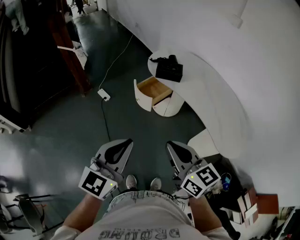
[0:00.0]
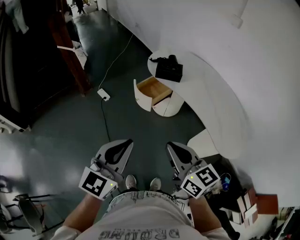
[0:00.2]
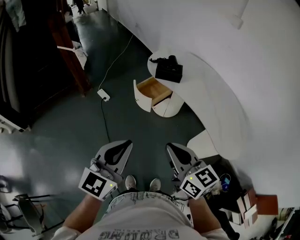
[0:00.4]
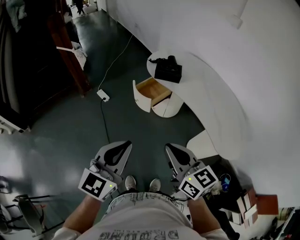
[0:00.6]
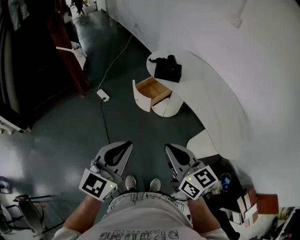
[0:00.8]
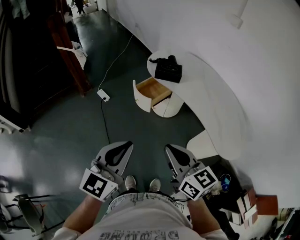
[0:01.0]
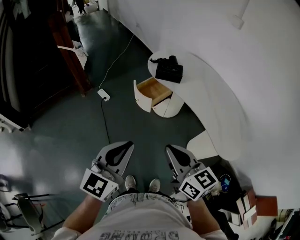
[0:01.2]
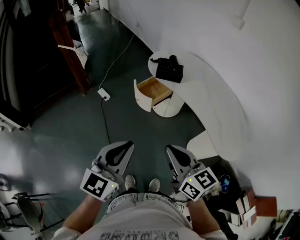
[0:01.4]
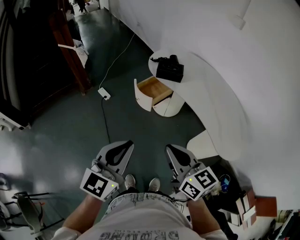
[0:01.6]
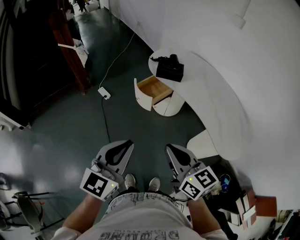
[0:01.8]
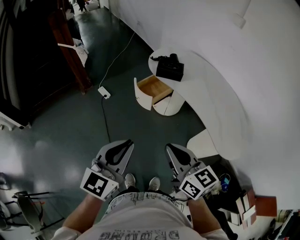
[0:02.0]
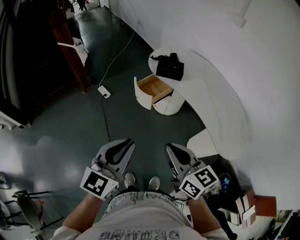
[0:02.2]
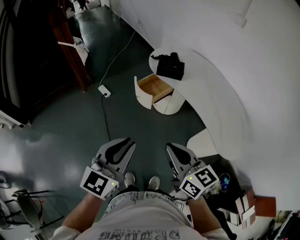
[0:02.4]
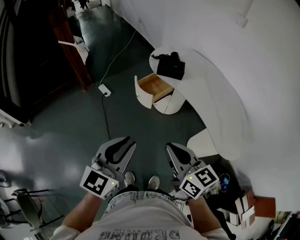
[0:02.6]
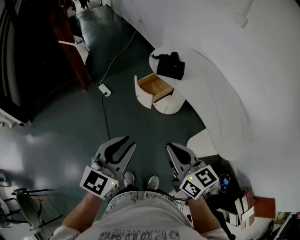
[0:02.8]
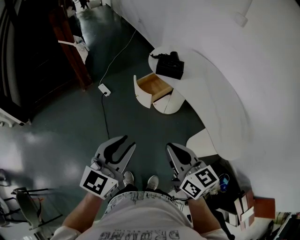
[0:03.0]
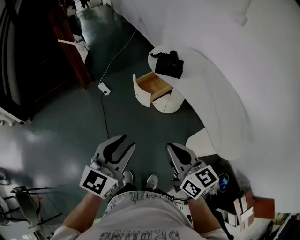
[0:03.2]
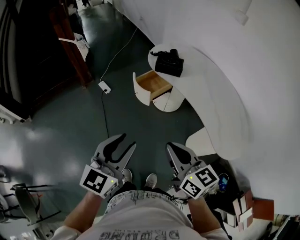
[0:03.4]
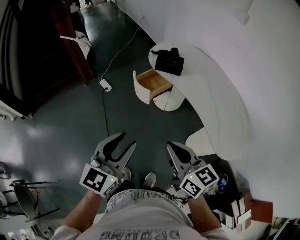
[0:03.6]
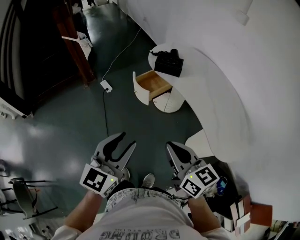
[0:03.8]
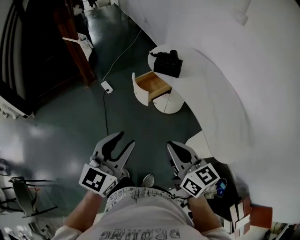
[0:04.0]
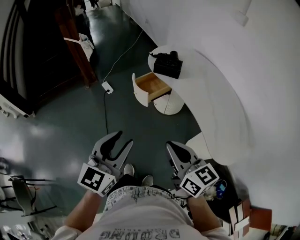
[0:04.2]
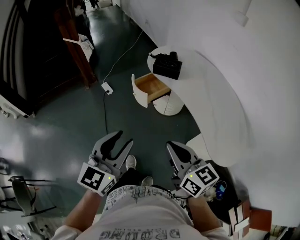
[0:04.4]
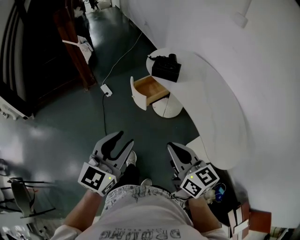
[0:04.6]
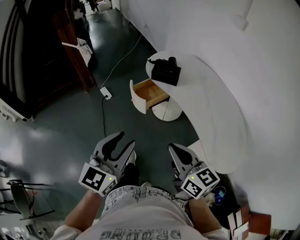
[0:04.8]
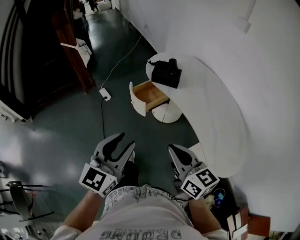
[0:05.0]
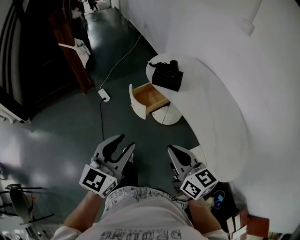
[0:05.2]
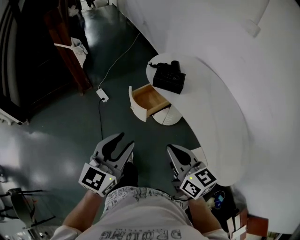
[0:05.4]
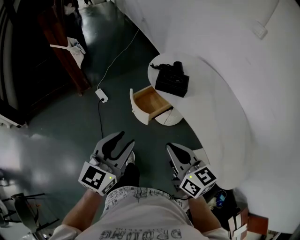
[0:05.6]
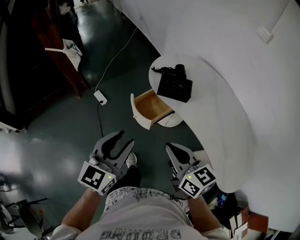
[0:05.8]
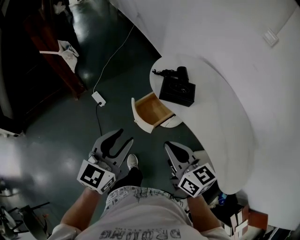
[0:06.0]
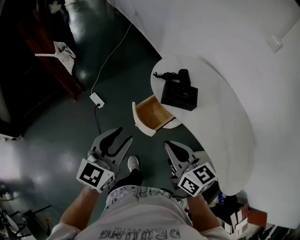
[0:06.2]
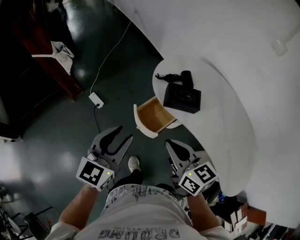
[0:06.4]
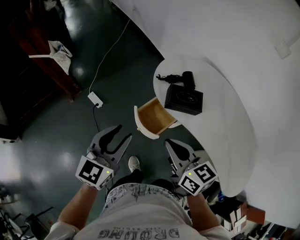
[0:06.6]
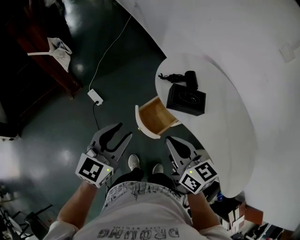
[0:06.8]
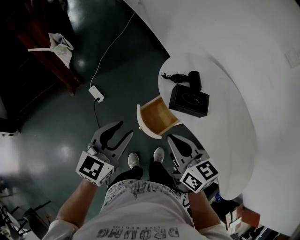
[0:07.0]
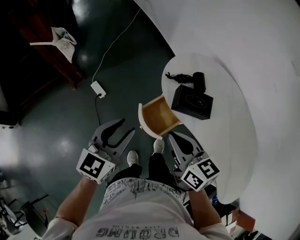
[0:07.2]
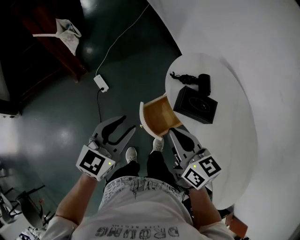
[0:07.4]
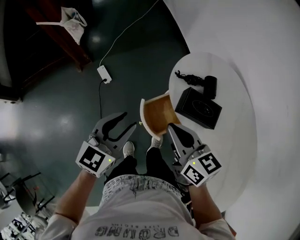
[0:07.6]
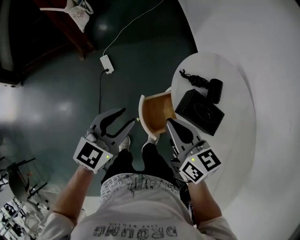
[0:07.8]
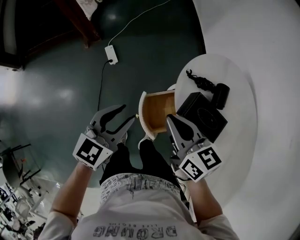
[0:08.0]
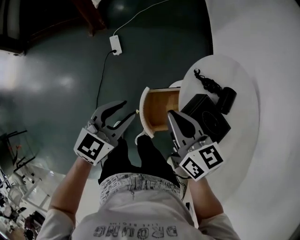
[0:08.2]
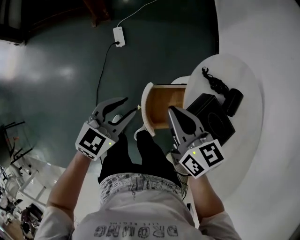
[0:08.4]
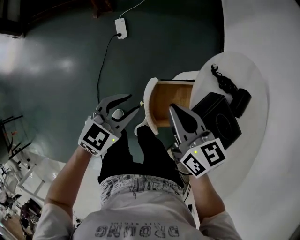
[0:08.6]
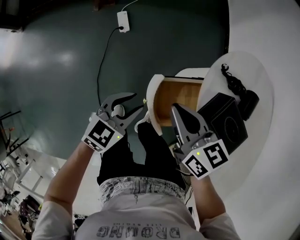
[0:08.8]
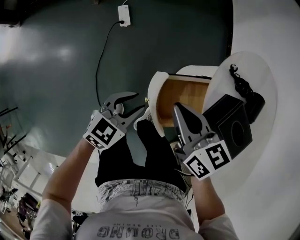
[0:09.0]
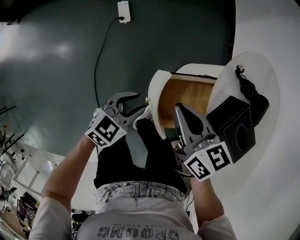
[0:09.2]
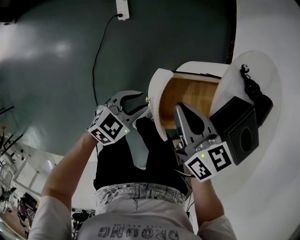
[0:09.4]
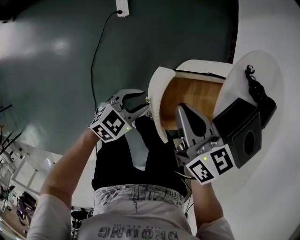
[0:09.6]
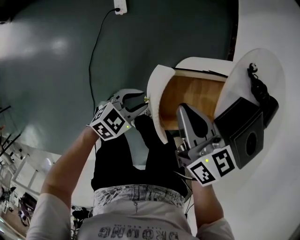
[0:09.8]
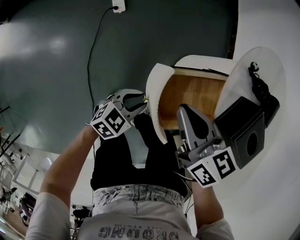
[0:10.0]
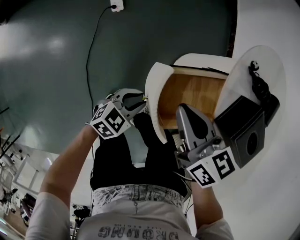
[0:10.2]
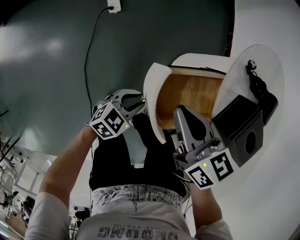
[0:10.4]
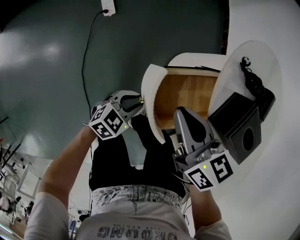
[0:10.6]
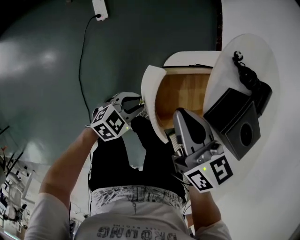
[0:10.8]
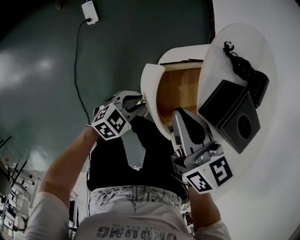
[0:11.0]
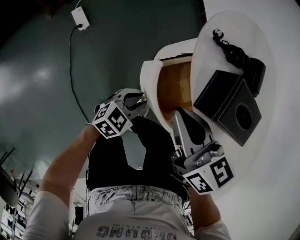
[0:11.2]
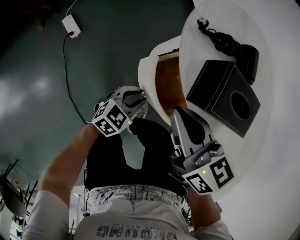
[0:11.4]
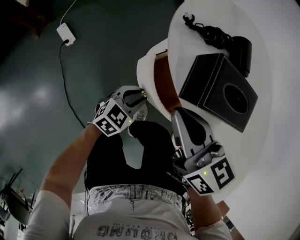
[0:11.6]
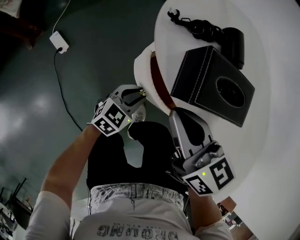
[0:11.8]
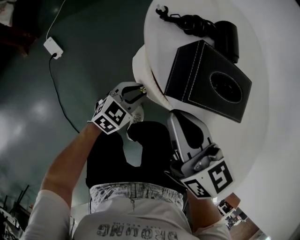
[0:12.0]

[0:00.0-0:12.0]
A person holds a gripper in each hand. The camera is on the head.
0:00.0 to 0:01.6: There are only small adjustments of the grippers.
0:01.6 to 0:03.0: The left gripper opens its fingers.
0:03.0 to 0:04.4: Both grippers move to the right, some 5 cm.
0:04.4 to 0:06.0: The grippers both shift forward by roughly 30 cm.
0:06.0 to 0:07.6: The left gripper shifts some 20 cm forward and downward; the right gripper heads forward, covering approximately 20 cm.
0:07.6 to 0:09.0: The right gripper heads downward, covering about 15 cm, and swivels approximately 20 degrees. Meanwhile the left gripper is displaced downward by approximately 25 cm.
0:09.0 to 0:10.4: The left gripper goes about 15 cm downward, while the right gripper moves downward, about 5 cm.
0:10.4 to 0:12.0: The right gripper ends up about 10 cm from where it was, and rotates roughly 30 degrees. Meanwhile the left gripper changes place by about 15 cm, and rotates approximately 30 degrees.

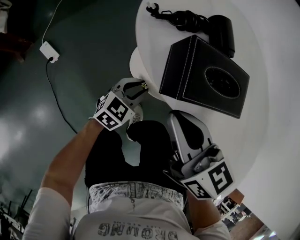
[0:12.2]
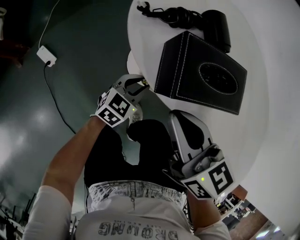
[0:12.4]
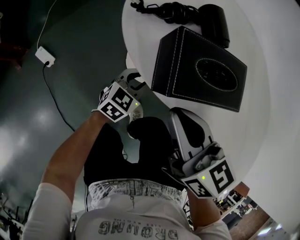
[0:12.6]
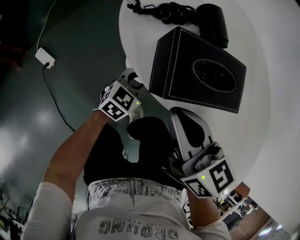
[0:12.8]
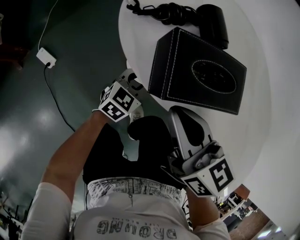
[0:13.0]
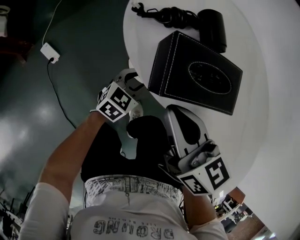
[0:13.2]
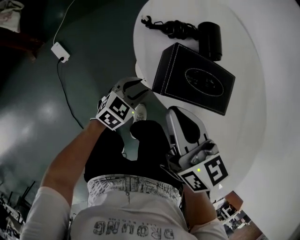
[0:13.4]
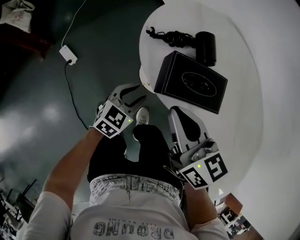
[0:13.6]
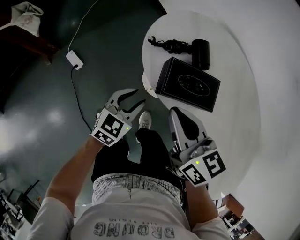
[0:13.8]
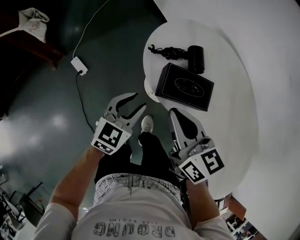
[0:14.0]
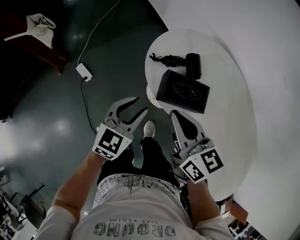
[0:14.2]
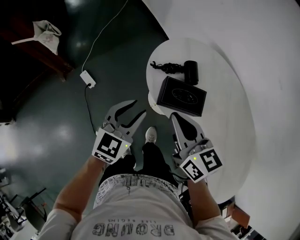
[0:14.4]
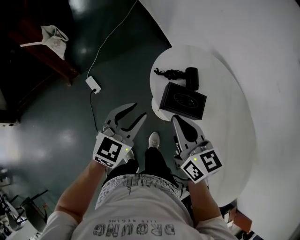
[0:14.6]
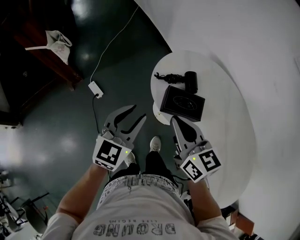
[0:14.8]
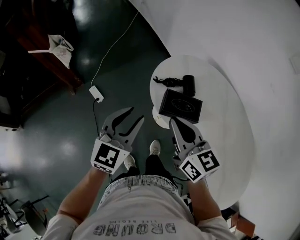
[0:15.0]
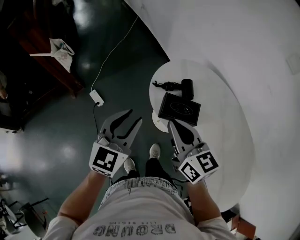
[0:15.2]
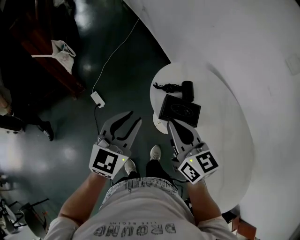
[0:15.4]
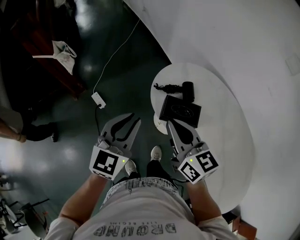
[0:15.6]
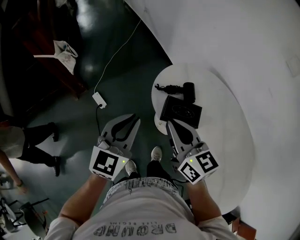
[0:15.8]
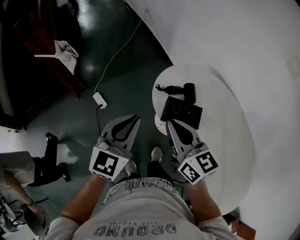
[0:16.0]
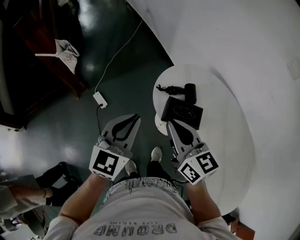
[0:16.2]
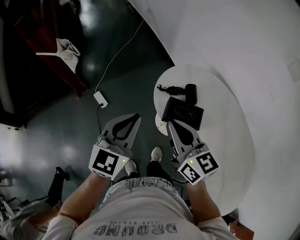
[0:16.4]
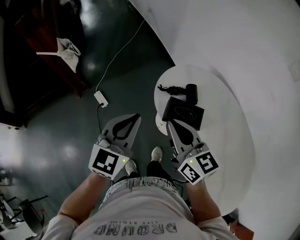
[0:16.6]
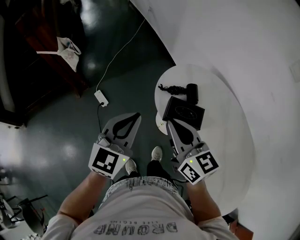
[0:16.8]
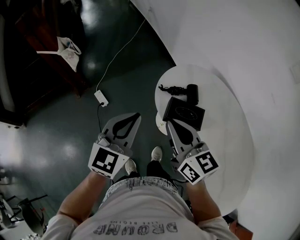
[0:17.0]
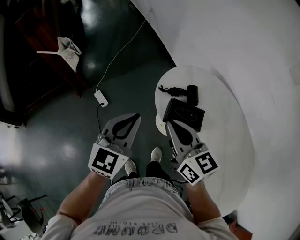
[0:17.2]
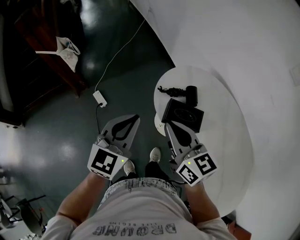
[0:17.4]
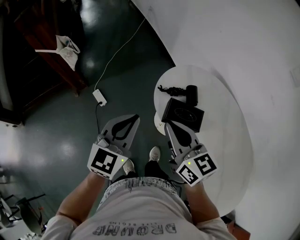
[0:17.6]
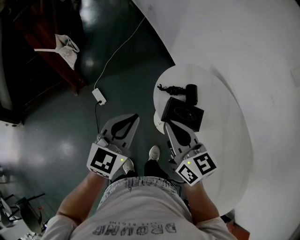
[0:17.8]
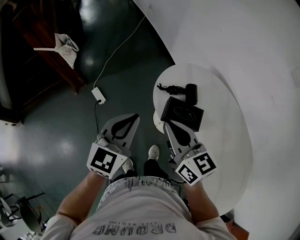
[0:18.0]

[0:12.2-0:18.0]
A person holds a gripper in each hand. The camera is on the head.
0:12.2 to 0:13.6: Both grippers travel together upward, roughly 10 cm.
0:13.6 to 0:15.0: The left gripper shifts about 35 cm upward, and changes its angle by roughly 30 degrees. Meanwhile the right gripper heads upward, covering roughly 15 cm.
0:15.0 to 0:16.6: The left gripper closes.
0:16.6 to 0:18.0: The grippers make only small movements.

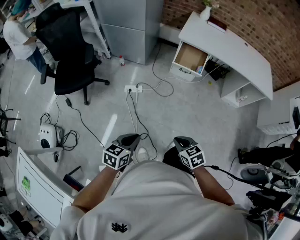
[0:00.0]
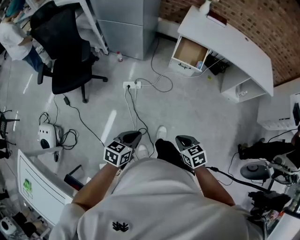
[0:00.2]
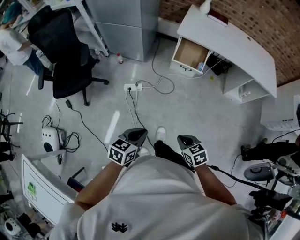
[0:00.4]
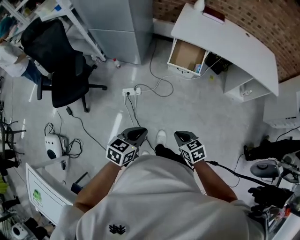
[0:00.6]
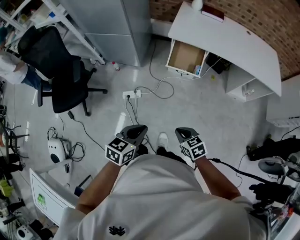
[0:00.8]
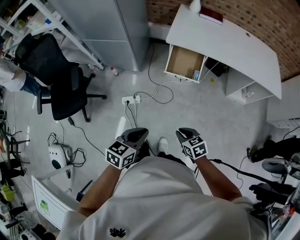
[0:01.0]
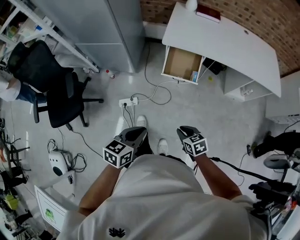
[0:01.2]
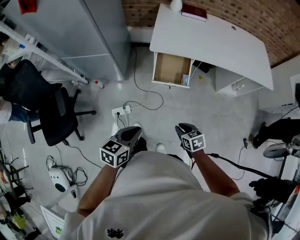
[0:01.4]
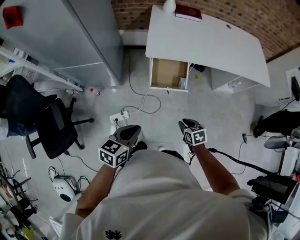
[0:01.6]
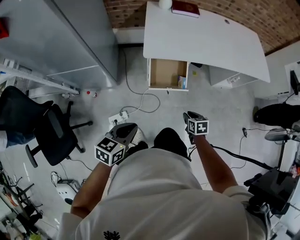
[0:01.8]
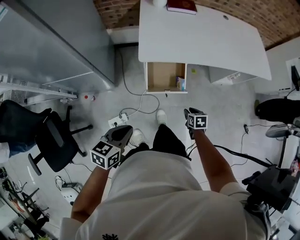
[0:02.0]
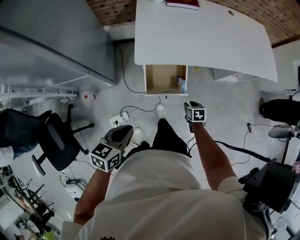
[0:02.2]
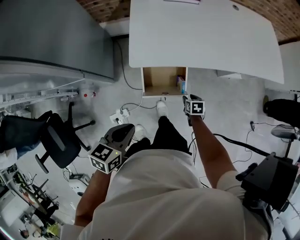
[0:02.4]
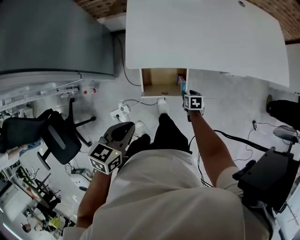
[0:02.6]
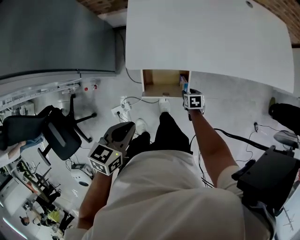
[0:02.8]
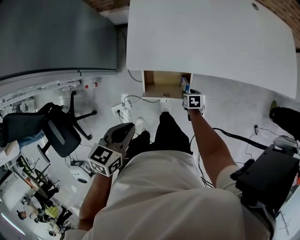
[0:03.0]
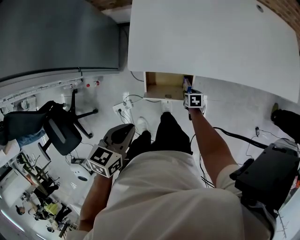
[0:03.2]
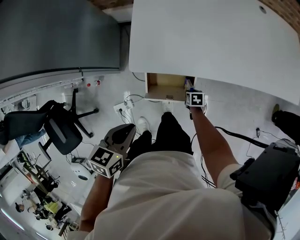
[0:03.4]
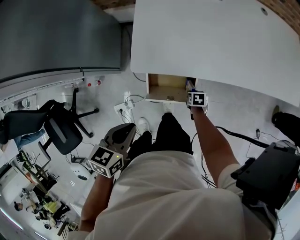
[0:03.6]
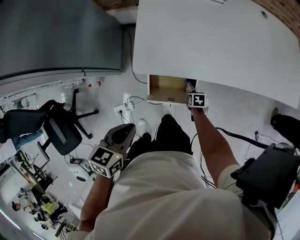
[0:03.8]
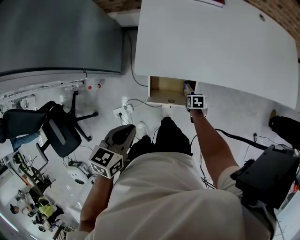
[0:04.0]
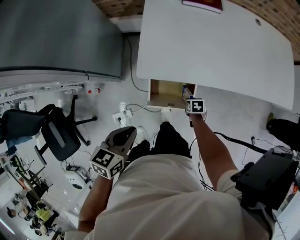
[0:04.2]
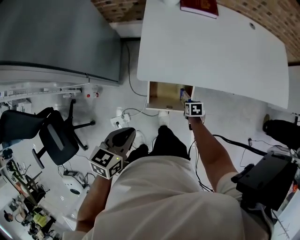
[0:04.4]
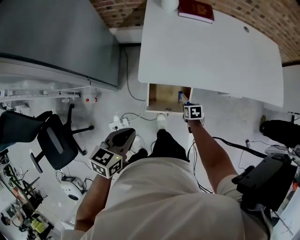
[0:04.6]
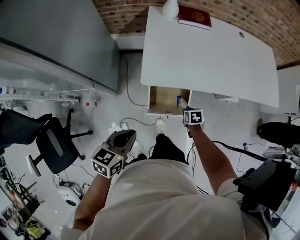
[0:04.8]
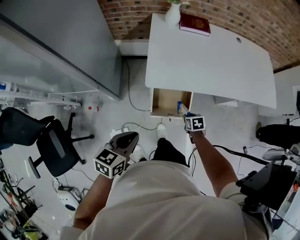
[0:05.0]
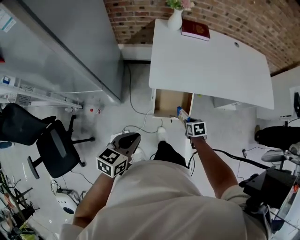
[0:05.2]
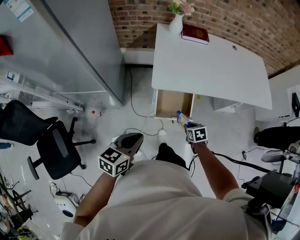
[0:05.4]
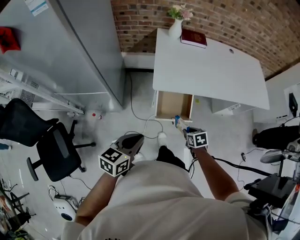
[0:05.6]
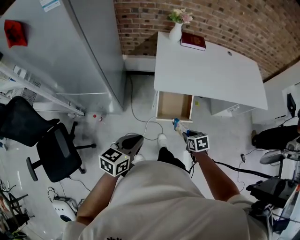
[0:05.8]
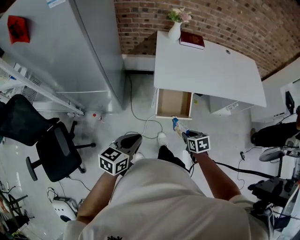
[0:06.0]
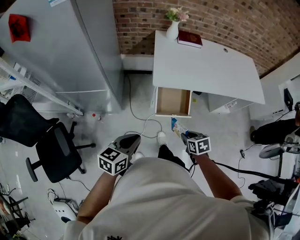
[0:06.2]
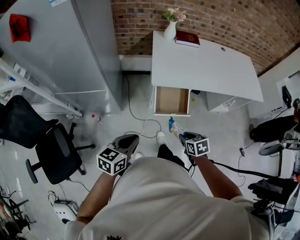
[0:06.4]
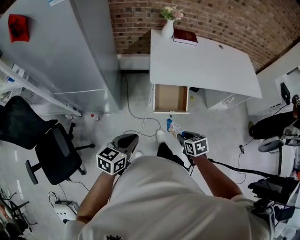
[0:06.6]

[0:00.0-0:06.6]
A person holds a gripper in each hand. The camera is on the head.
0:00.0 to 0:01.6: The two grippers travel together, forward, approximately 50 cm. The right gripper turns by about 30 degrees.
0:01.6 to 0:03.2: The left gripper is displaced forward by approximately 35 cm. Meanwhile the right gripper shifts roughly 50 cm forward and downward, swivels about 20 degrees, and opens up.
0:03.2 to 0:05.0: The left gripper ends up about 15 cm from where it was. The right gripper travels upward by some 20 cm, and closes its fingers.
0:05.0 to 0:06.6: The left gripper travels backward by approximately 20 cm. Meanwhile the right gripper shifts roughly 35 cm backward and upward.
